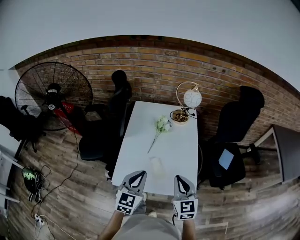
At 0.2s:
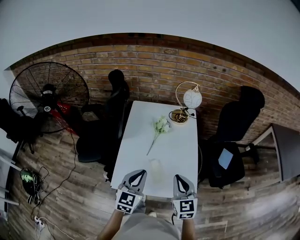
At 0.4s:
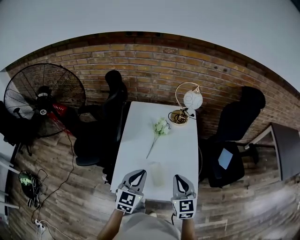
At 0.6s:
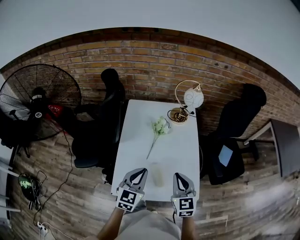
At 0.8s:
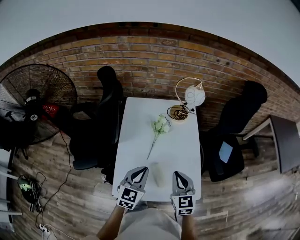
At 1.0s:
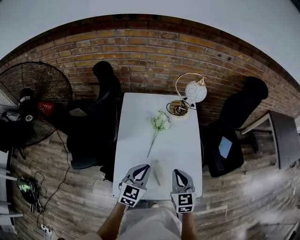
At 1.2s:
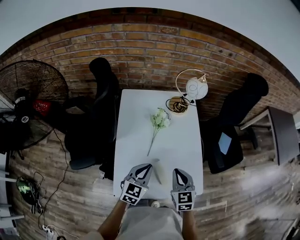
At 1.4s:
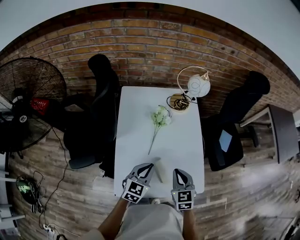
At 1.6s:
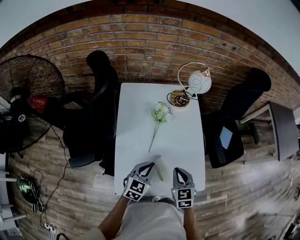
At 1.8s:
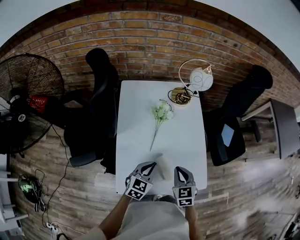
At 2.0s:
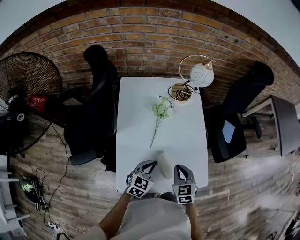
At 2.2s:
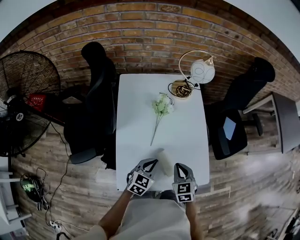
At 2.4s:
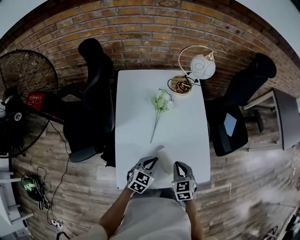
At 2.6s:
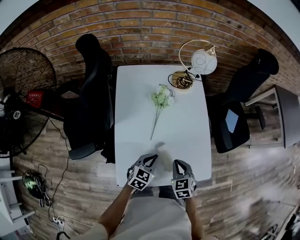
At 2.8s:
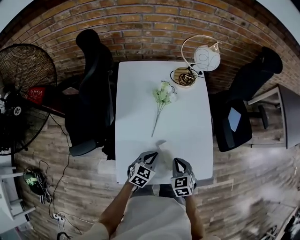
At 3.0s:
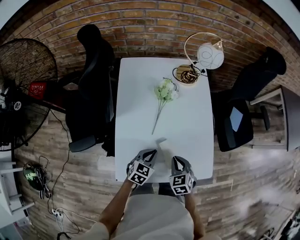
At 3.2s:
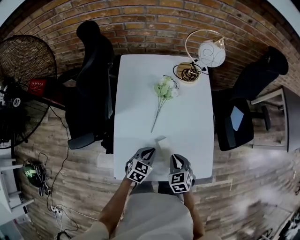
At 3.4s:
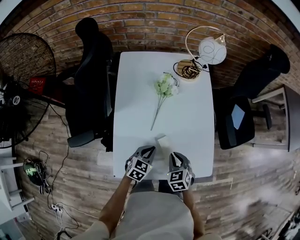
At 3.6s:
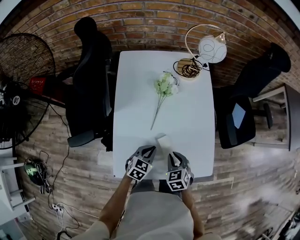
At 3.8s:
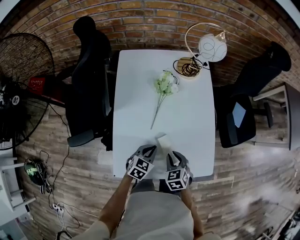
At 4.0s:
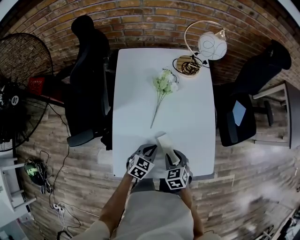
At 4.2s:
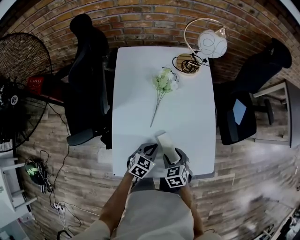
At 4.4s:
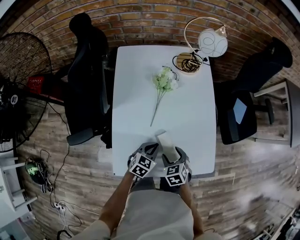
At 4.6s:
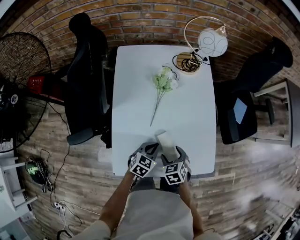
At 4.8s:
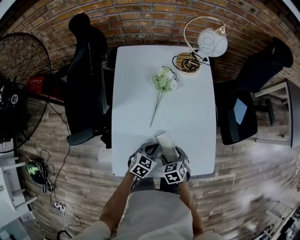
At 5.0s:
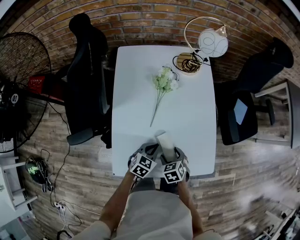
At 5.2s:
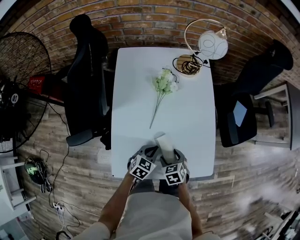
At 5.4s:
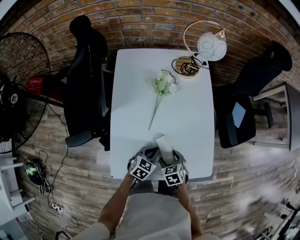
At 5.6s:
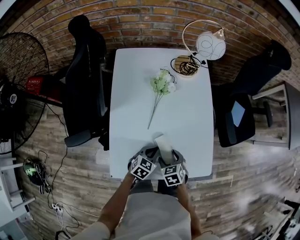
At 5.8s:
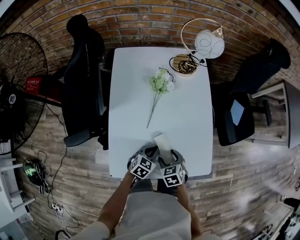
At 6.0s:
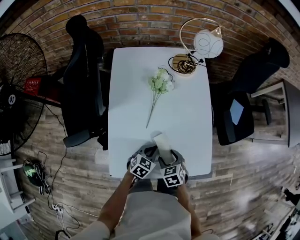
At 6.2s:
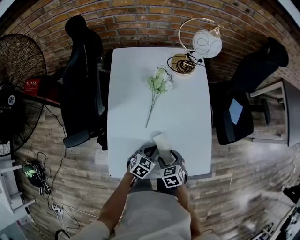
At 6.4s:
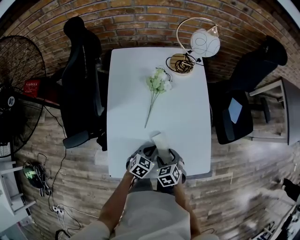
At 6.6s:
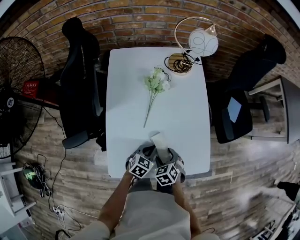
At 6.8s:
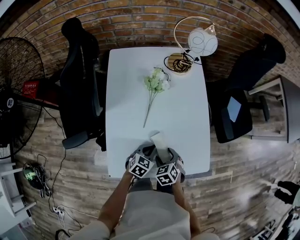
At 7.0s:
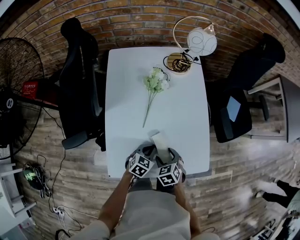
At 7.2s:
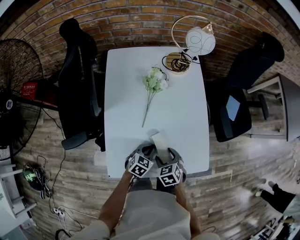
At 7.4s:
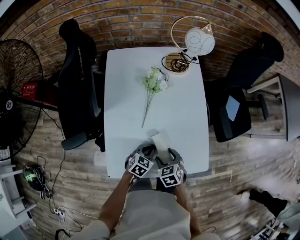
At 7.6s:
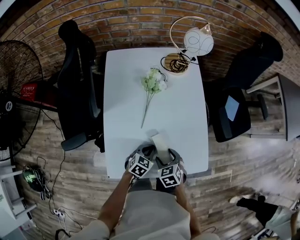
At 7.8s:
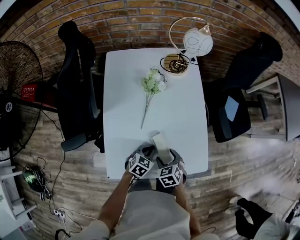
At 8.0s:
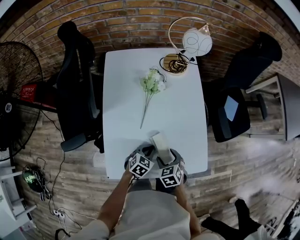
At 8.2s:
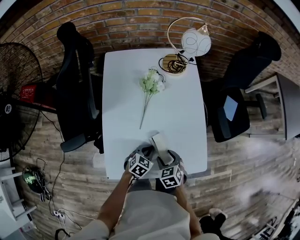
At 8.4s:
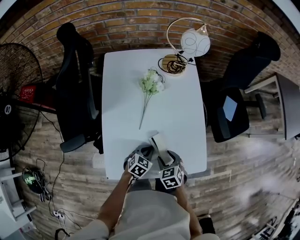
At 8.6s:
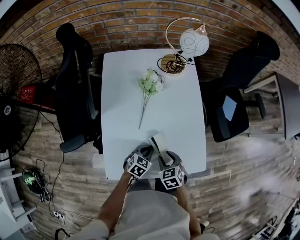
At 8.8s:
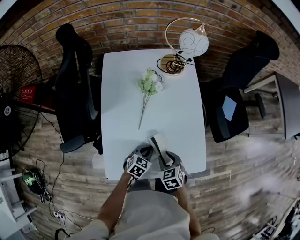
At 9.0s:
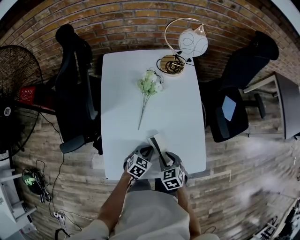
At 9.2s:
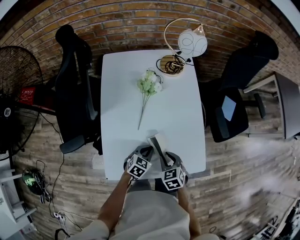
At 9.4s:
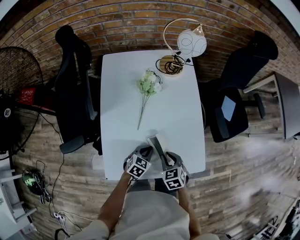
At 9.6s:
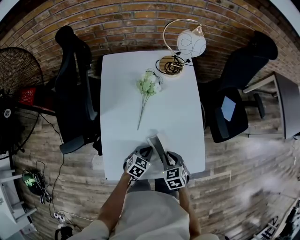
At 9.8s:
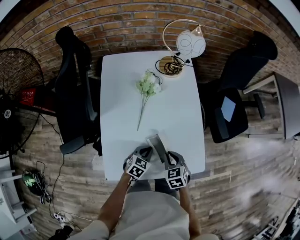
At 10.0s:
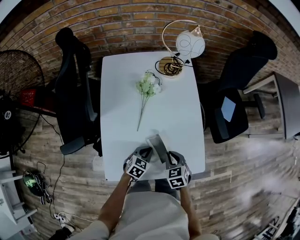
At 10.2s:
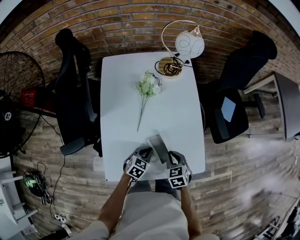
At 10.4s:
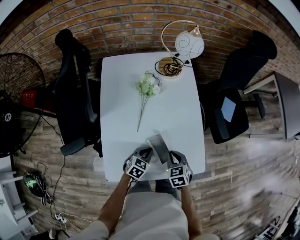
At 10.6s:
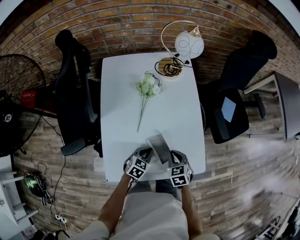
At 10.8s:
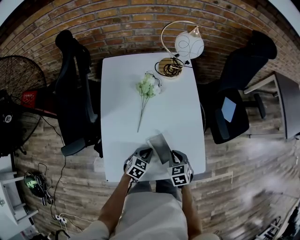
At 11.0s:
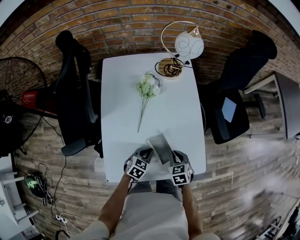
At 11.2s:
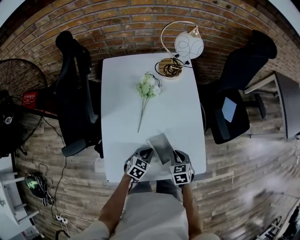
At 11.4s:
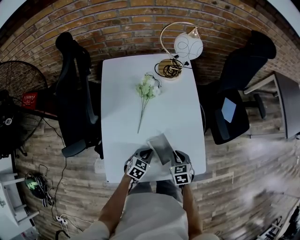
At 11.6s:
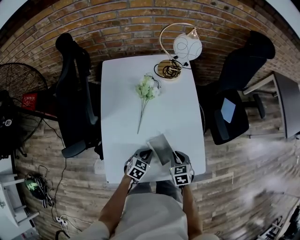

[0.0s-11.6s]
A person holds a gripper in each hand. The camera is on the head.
0.0s to 1.4s: The left gripper goes approximately 20 cm forward and downward, and swivels some 20 degrees, while the right gripper travels forward, downward and to the left by roughly 20 cm, and changes its angle by approximately 20 degrees.
1.4s to 2.8s: Both grippers travel together downward, about 10 cm.
2.8s to 4.4s: The right gripper moves downward, roughly 5 cm, and opens its fingers. The left gripper moves approximately 5 cm.
4.4s to 7.2s: The grippers move only a little.
7.2s to 8.8s: The right gripper closes its fingers.
8.8s to 10.2s: The grippers stay close to where they were, moving slightly.
10.2s to 11.6s: There are only small adjustments of the grippers.

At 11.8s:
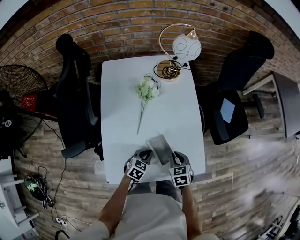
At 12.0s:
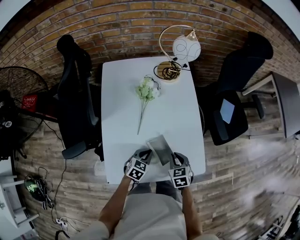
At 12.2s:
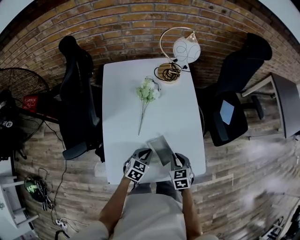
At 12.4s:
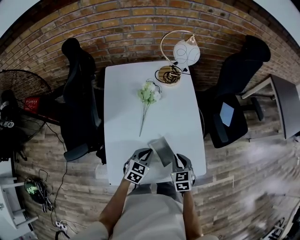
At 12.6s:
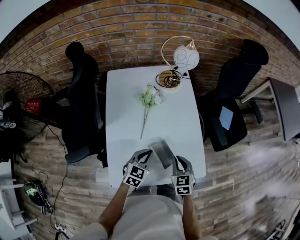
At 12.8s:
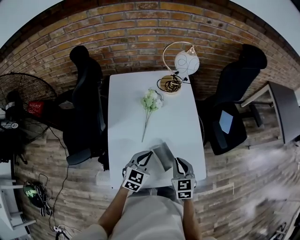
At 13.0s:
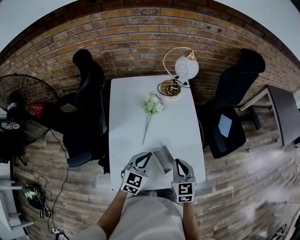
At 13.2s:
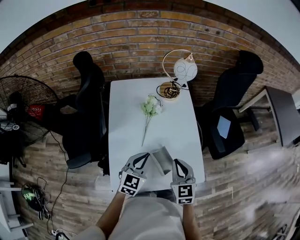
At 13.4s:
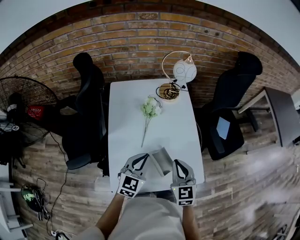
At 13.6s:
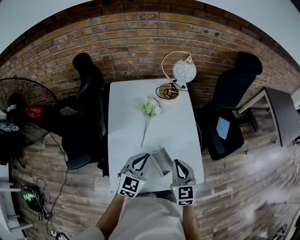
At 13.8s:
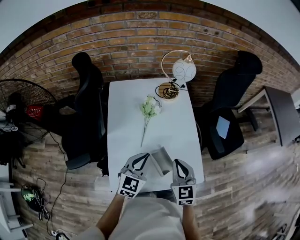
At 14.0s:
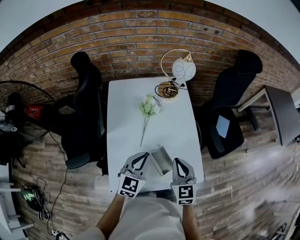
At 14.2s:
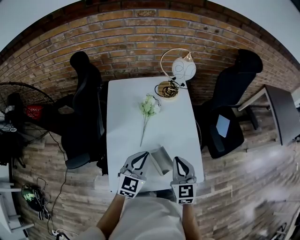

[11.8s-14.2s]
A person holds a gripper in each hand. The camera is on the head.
11.8s to 13.0s: Both grippers travel together upward, about 15 cm. The left gripper changes its angle by about 30 degrees; the right gripper rotates about 20 degrees.
13.0s to 14.2s: The grippers make only small movements.

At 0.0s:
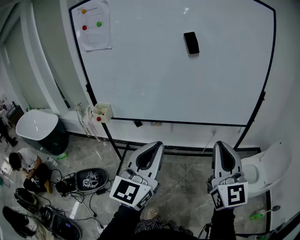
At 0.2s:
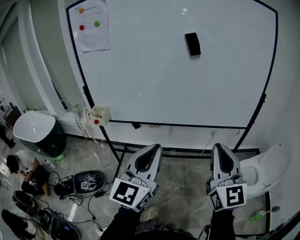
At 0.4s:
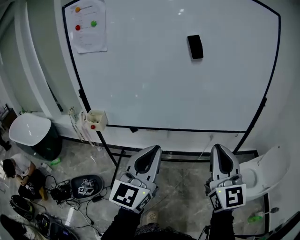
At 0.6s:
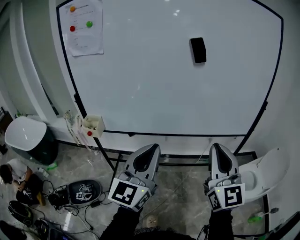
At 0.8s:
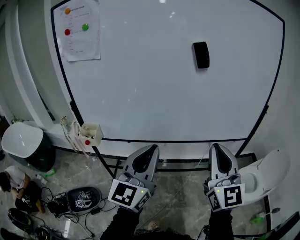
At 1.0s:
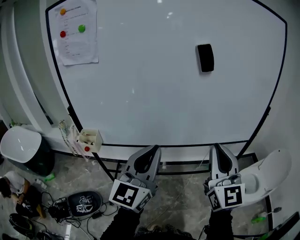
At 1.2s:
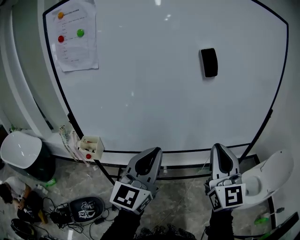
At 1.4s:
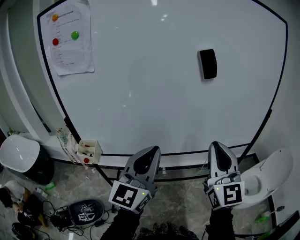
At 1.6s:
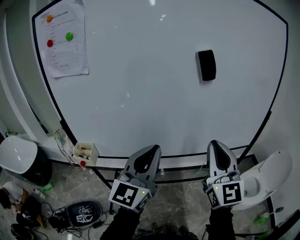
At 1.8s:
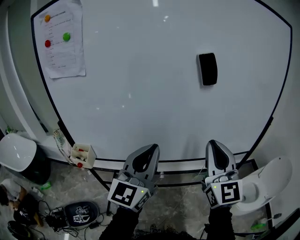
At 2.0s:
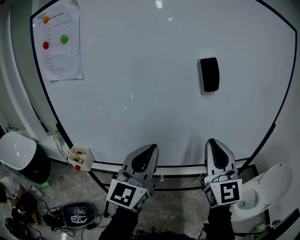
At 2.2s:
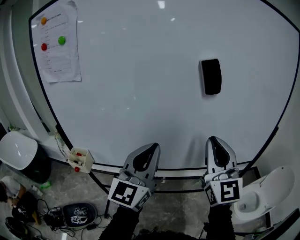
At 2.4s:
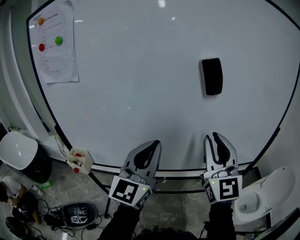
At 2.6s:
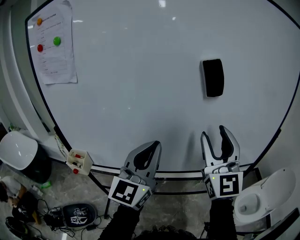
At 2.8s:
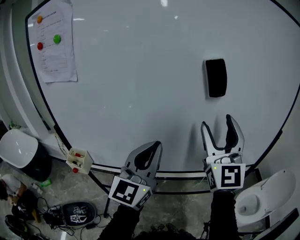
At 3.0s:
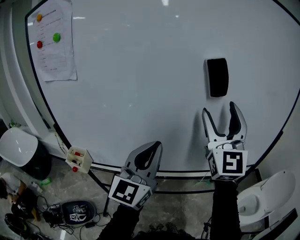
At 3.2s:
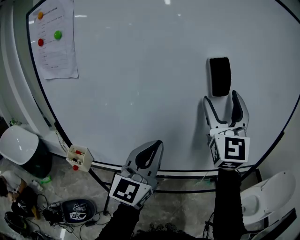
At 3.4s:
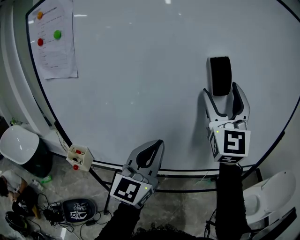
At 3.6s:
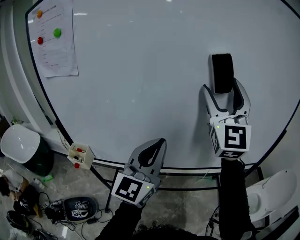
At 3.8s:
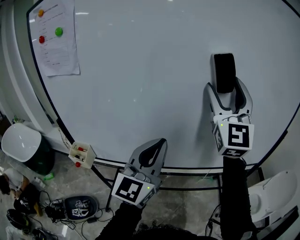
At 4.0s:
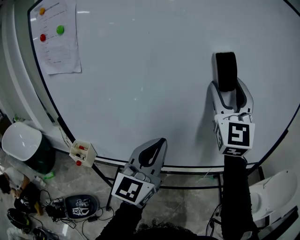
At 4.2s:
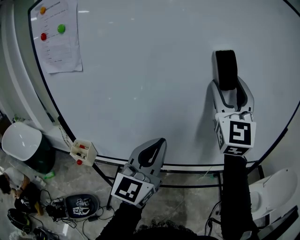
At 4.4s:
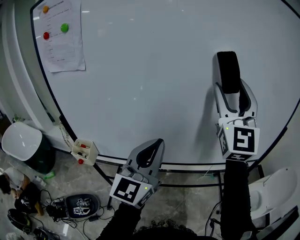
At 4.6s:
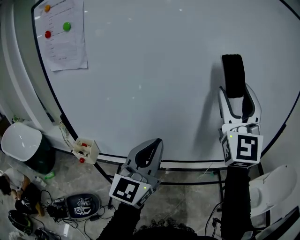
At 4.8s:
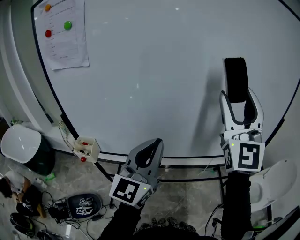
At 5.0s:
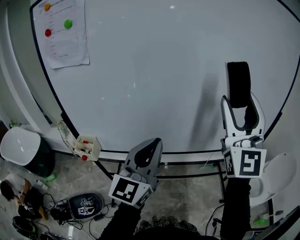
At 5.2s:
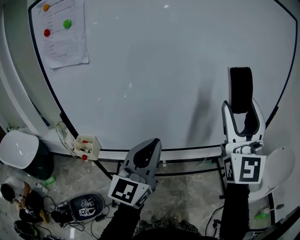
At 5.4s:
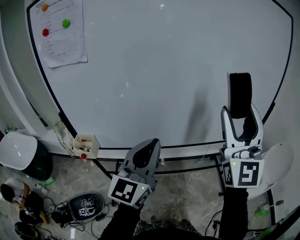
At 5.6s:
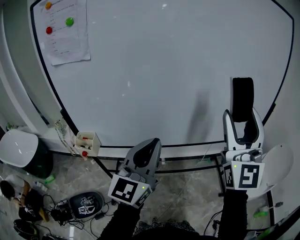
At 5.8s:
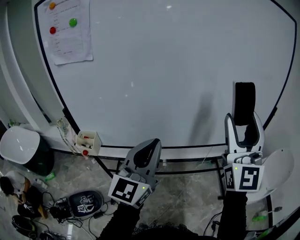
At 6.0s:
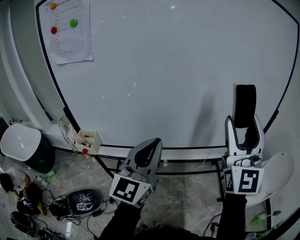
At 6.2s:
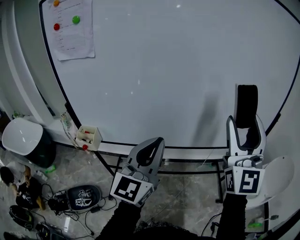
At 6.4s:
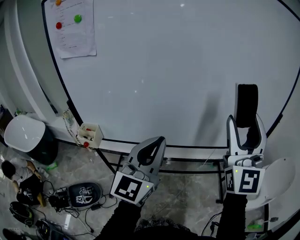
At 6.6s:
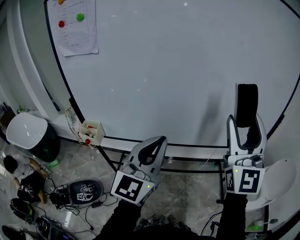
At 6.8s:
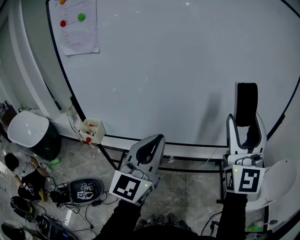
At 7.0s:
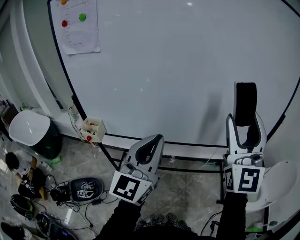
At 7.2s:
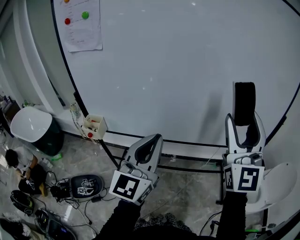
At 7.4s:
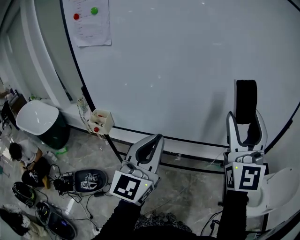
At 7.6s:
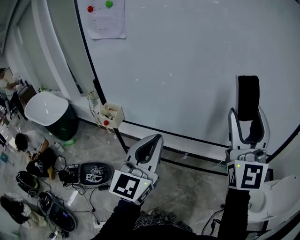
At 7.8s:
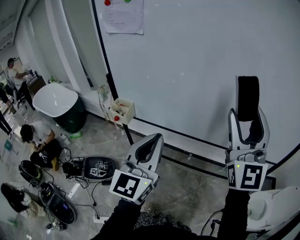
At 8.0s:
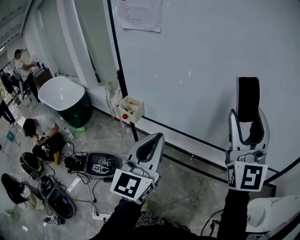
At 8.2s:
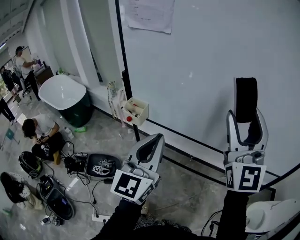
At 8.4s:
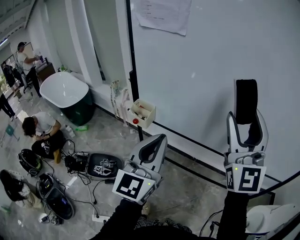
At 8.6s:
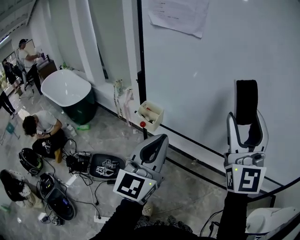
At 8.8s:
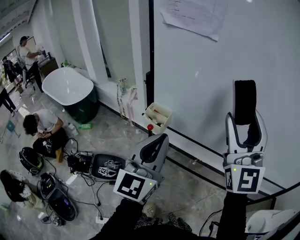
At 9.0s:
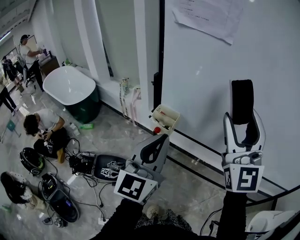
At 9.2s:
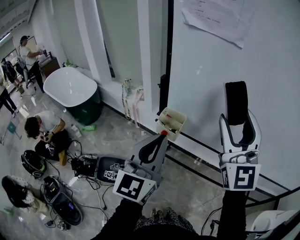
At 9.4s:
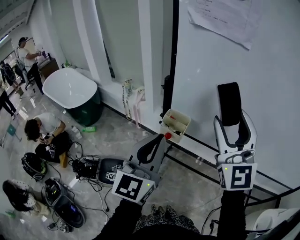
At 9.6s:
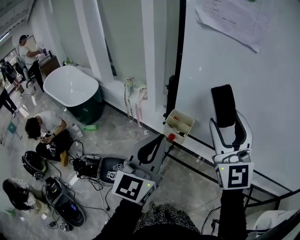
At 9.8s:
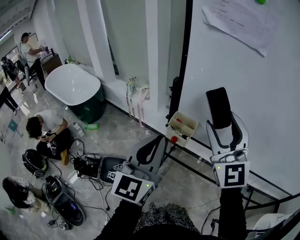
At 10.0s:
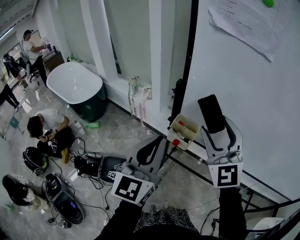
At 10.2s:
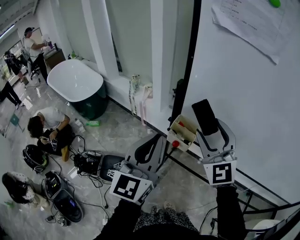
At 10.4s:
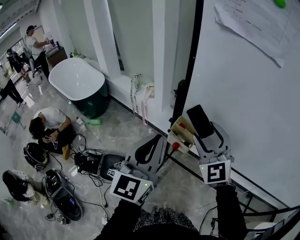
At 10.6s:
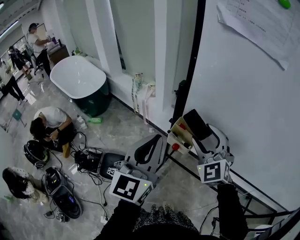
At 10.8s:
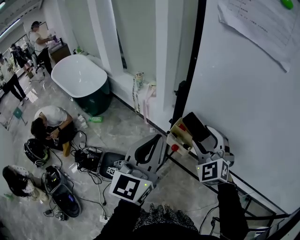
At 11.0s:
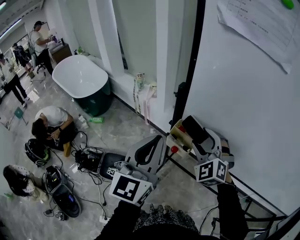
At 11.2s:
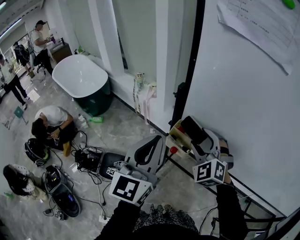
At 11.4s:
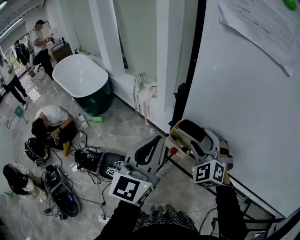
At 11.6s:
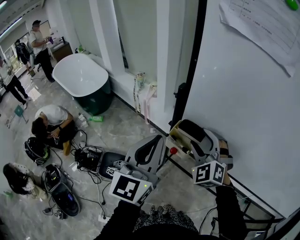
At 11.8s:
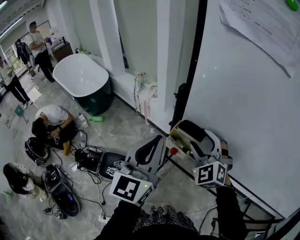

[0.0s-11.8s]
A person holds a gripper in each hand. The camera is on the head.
0.0s to 1.4s: The two grippers go some 25 cm forward and to the left.
1.4s to 3.0s: The left gripper moves forward, some 10 cm. The right gripper is displaced forward and upward by about 20 cm, and opens its fingers.
3.0s to 4.4s: The grippers stay close to where they were, moving slightly.
4.4s to 6.0s: The left gripper goes some 10 cm backward, while the right gripper is displaced backward by approximately 15 cm.
6.0s to 7.4s: There are only small adjustments of the grippers.
7.4s to 8.8s: The grippers both shift to the left by some 30 cm.
8.8s to 10.4s: The right gripper travels to the left, downward and forward by some 30 cm, and turns by some 30 degrees, while the left gripper travels to the left and forward by about 20 cm.
10.4s to 11.8s: The right gripper travels downward by some 5 cm.
